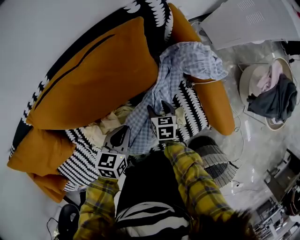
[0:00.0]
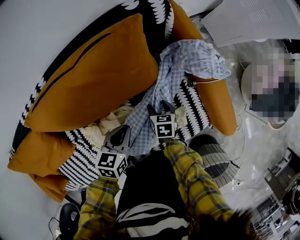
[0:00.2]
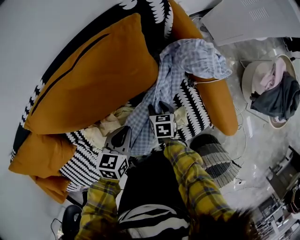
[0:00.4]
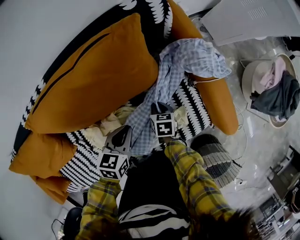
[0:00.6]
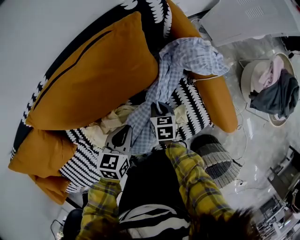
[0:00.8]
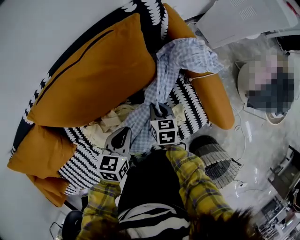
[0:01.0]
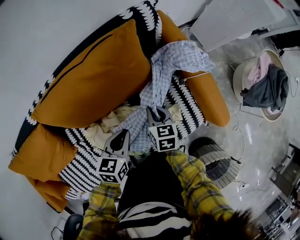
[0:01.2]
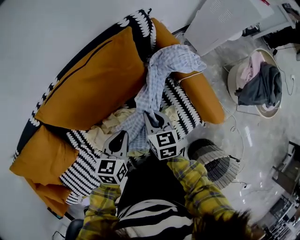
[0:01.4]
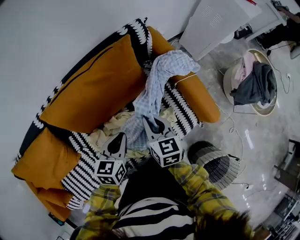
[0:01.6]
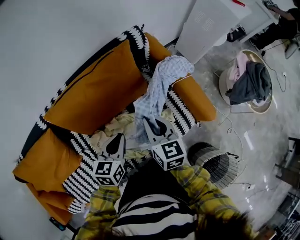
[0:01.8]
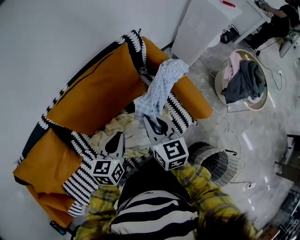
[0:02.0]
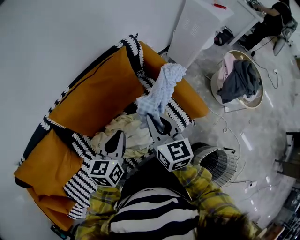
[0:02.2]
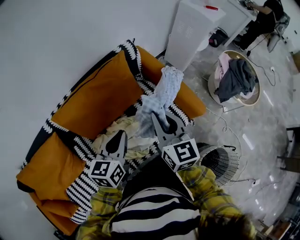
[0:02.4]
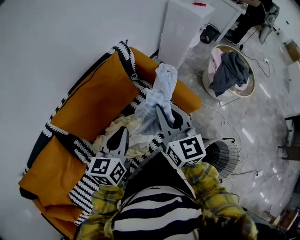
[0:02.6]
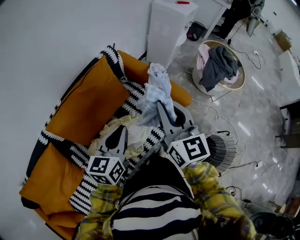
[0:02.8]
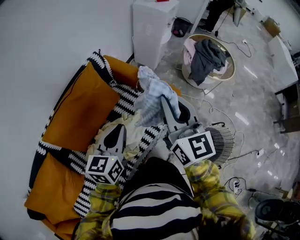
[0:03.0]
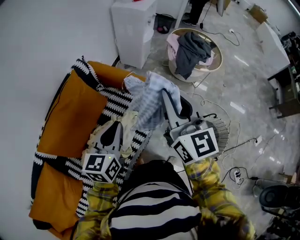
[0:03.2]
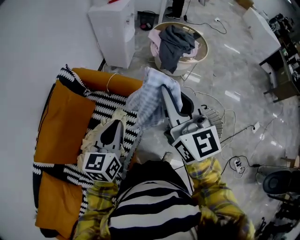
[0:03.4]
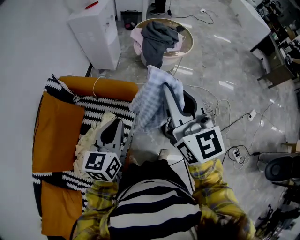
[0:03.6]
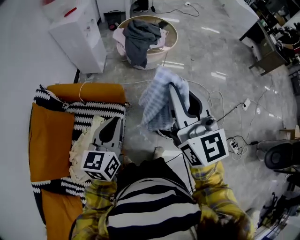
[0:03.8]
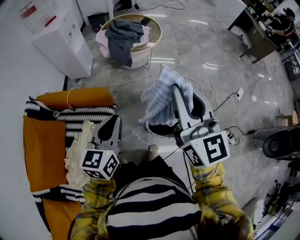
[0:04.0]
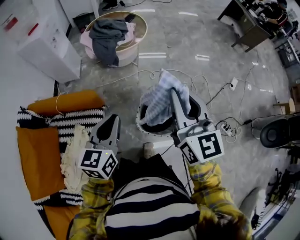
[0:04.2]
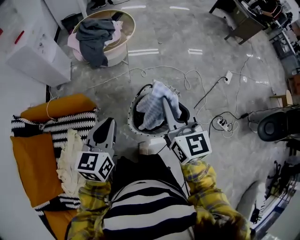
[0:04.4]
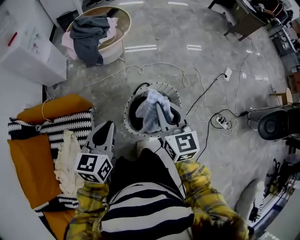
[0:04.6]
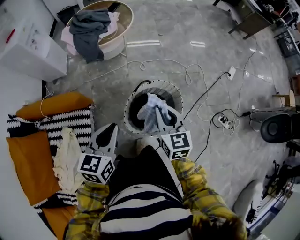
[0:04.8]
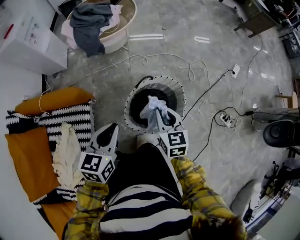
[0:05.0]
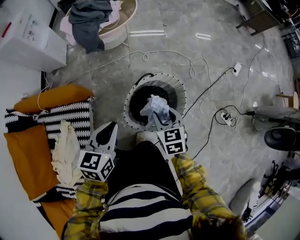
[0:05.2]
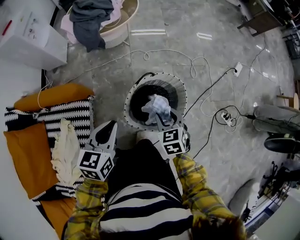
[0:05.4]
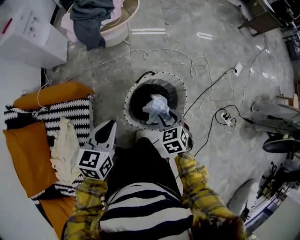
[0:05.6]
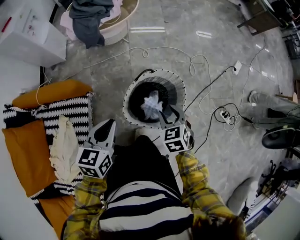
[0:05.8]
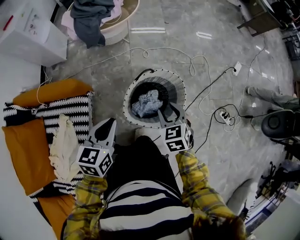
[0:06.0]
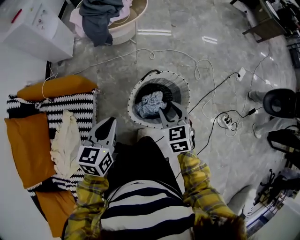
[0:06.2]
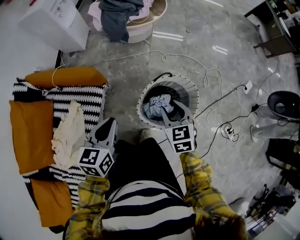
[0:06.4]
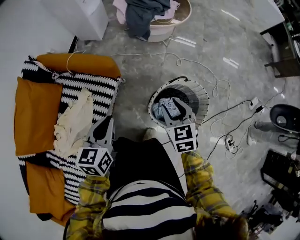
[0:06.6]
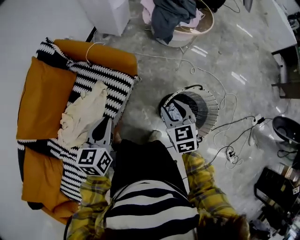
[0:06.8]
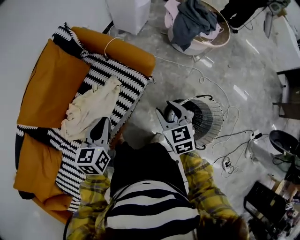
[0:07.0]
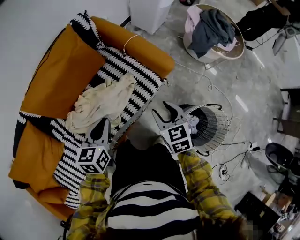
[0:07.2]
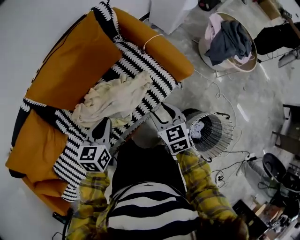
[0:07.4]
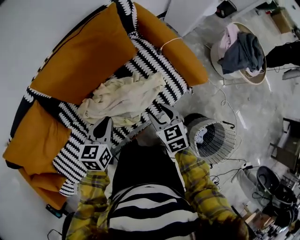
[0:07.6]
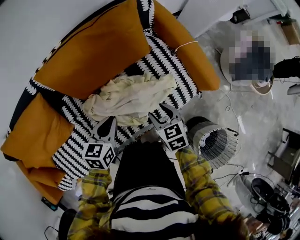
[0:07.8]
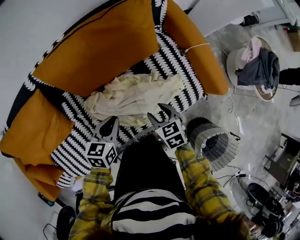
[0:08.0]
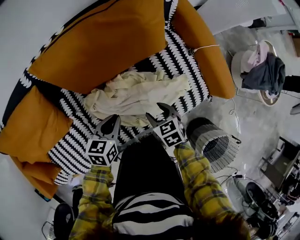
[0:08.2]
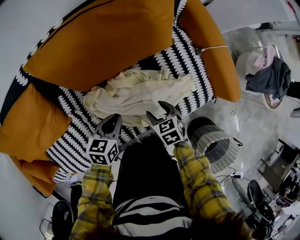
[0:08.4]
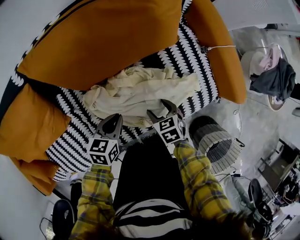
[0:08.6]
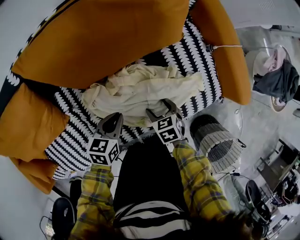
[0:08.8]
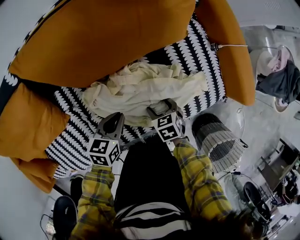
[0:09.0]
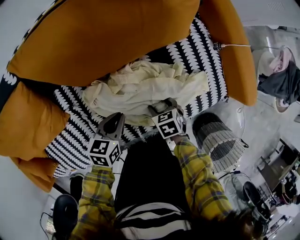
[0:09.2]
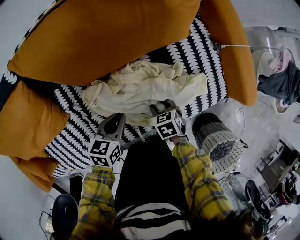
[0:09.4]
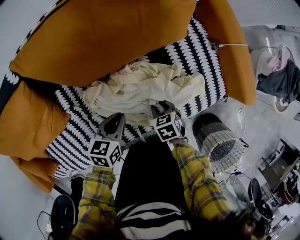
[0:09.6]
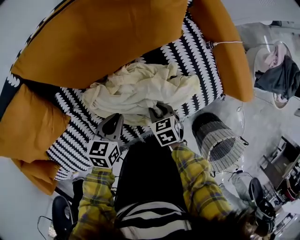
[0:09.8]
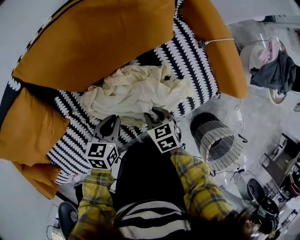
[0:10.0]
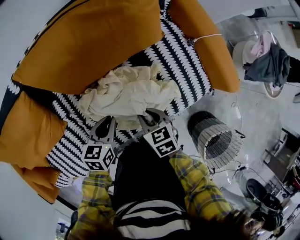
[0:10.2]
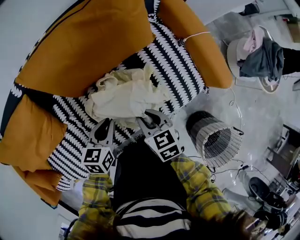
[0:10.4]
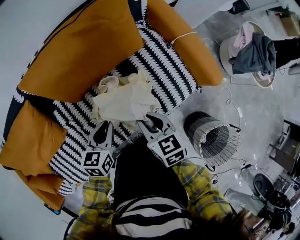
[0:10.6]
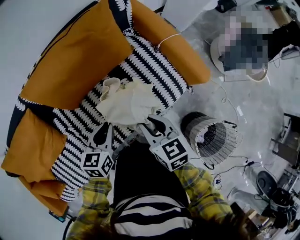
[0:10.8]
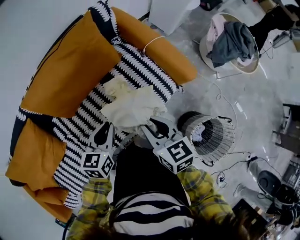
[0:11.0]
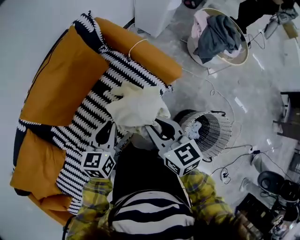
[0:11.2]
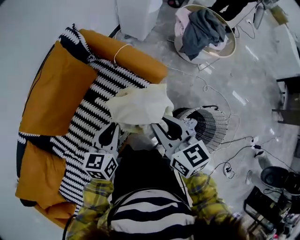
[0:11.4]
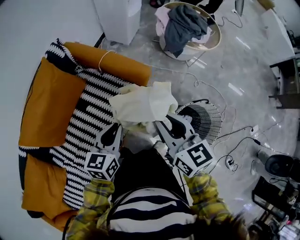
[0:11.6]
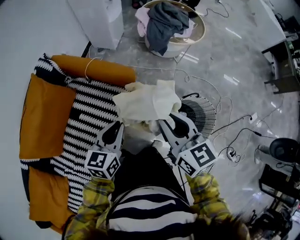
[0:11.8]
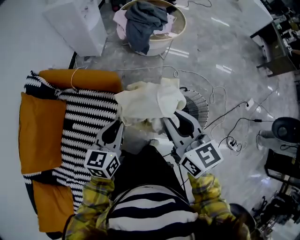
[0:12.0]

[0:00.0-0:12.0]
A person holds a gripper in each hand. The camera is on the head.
0:00.0 to 0:01.6: The left gripper travels upward by some 10 cm. The right gripper moves upward, about 25 cm, rotates some 30 degrees, and closes up.
0:01.6 to 0:03.0: The left gripper shifts about 20 cm upward, and turns by some 30 degrees; the right gripper travels upward by about 30 cm, and points its fingers about 30 degrees further upward.
0:03.0 to 0:04.4: Both grippers are carried about 50 cm. The left gripper swivels about 40 degrees. The right gripper changes its angle by roughly 40 degrees.
0:04.4 to 0:06.0: The right gripper shifts about 25 cm downward, tips its fingers downward by roughly 40 degrees, and opens its fingers. The left gripper moves downward, approximately 10 cm.
0:06.0 to 0:07.6: Both grippers are carried some 50 cm. The right gripper swivels approximately 60 degrees; the left gripper changes its angle by approximately 60 degrees.
0:07.6 to 0:09.0: Both grippers travel together downward and to the left, about 25 cm. The right gripper rotates some 30 degrees.
0:09.0 to 0:10.4: The left gripper shifts approximately 10 cm upward, while the right gripper heads upward, covering some 15 cm, turns by some 20 degrees, and closes up.
0:10.4 to 0:12.0: The pair of grippers is taken approximately 50 cm. The right gripper swivels roughly 60 degrees. Meanwhile the left gripper turns by roughly 50 degrees.

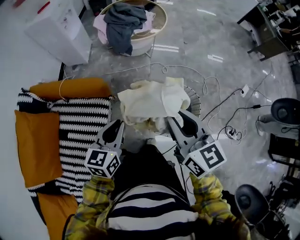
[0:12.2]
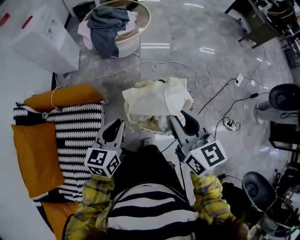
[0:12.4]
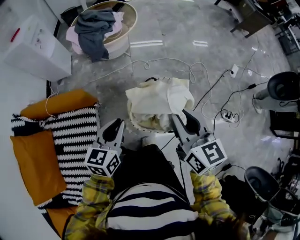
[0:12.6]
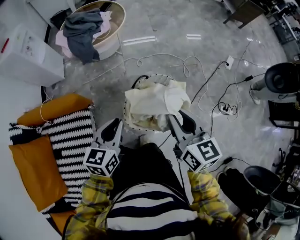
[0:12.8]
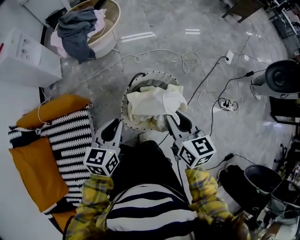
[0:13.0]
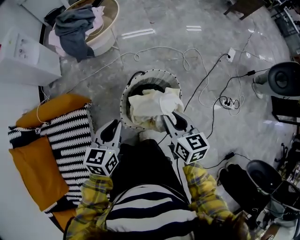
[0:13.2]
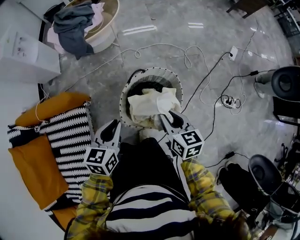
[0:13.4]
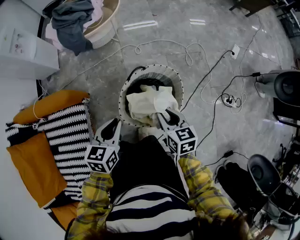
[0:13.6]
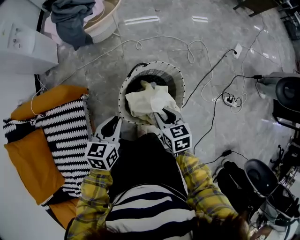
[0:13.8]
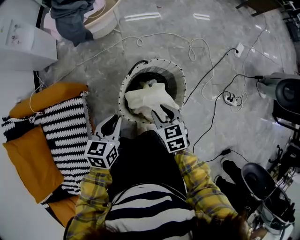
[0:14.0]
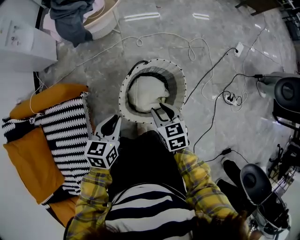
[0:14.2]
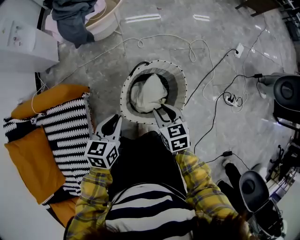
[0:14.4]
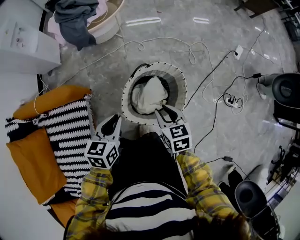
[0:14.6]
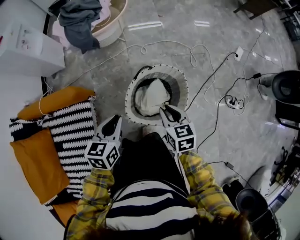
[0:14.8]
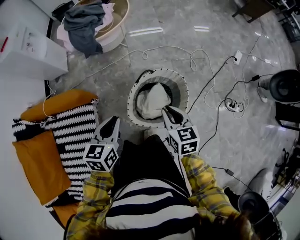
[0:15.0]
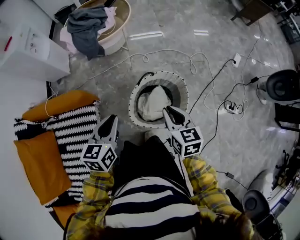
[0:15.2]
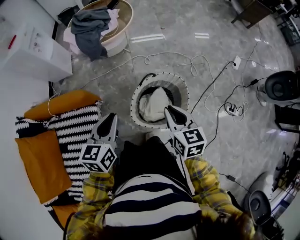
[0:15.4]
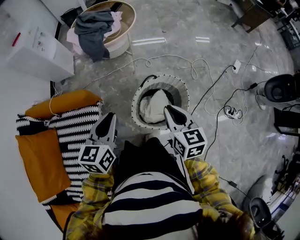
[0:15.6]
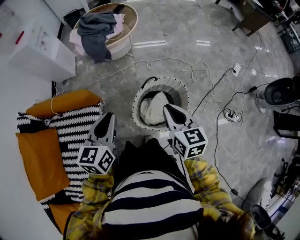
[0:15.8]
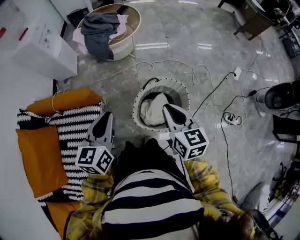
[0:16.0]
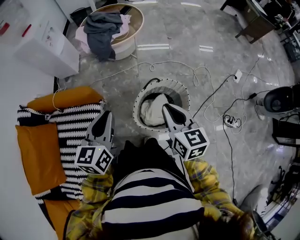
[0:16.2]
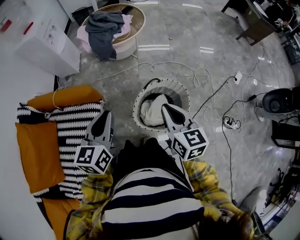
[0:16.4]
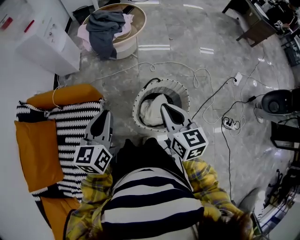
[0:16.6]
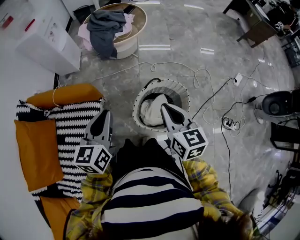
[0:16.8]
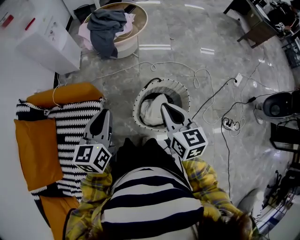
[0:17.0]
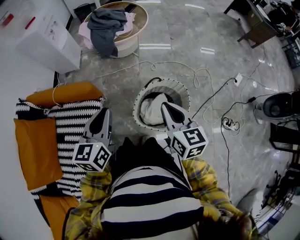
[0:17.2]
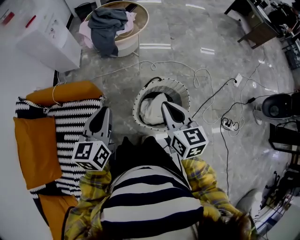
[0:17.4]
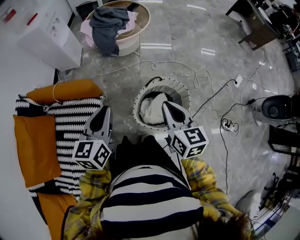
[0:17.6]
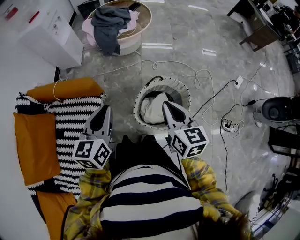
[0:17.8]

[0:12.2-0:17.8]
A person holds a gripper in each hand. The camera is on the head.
0:12.2 to 0:13.6: The right gripper heads downward and to the right, covering approximately 30 cm, and rotates about 30 degrees; the left gripper goes roughly 15 cm to the right and downward.
0:13.6 to 0:15.0: The right gripper shifts by some 5 cm. The left gripper ends up about 5 cm from where it was.
0:15.0 to 0:16.4: The right gripper is displaced upward by some 15 cm; the left gripper goes about 15 cm upward and to the left, and changes its angle by approximately 20 degrees.
0:16.4 to 0:17.8: The grippers stay close to where they were, moving slightly.

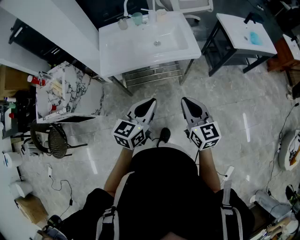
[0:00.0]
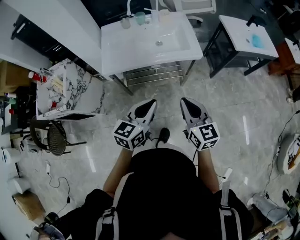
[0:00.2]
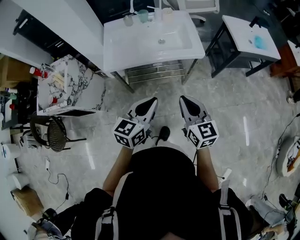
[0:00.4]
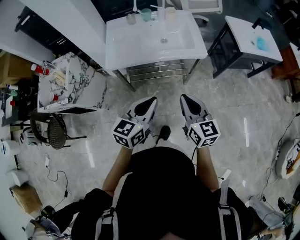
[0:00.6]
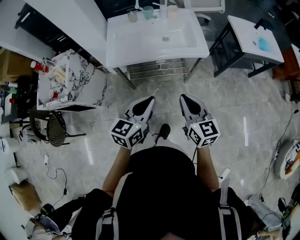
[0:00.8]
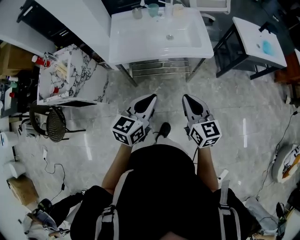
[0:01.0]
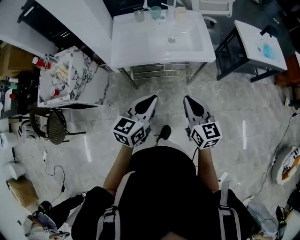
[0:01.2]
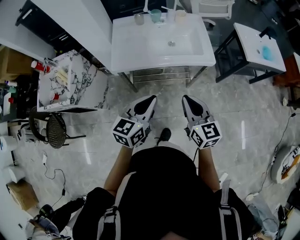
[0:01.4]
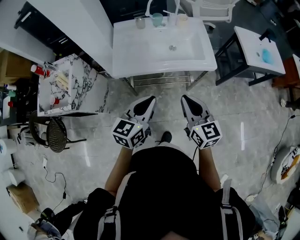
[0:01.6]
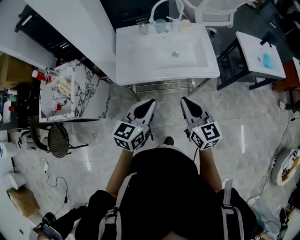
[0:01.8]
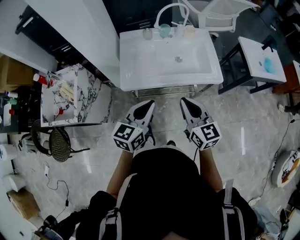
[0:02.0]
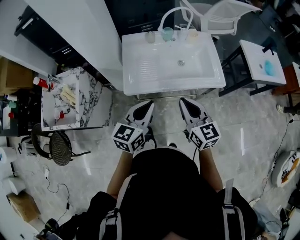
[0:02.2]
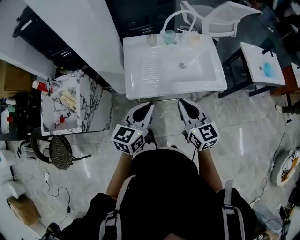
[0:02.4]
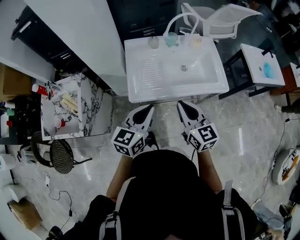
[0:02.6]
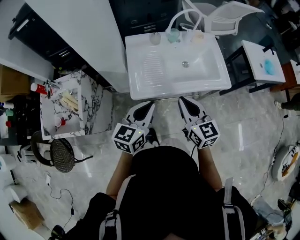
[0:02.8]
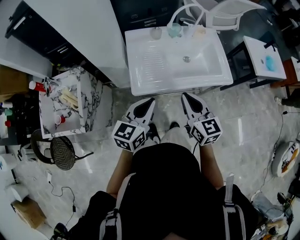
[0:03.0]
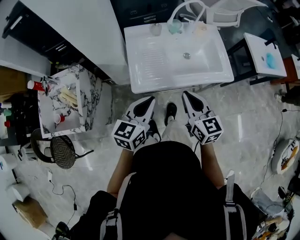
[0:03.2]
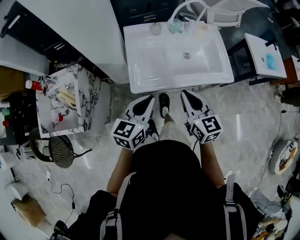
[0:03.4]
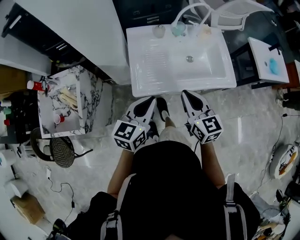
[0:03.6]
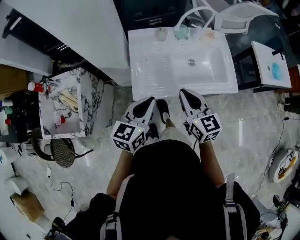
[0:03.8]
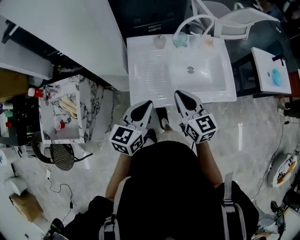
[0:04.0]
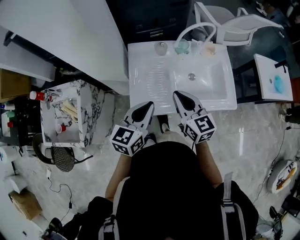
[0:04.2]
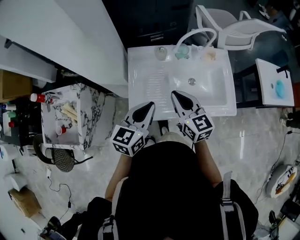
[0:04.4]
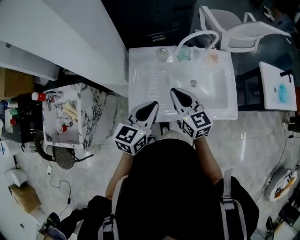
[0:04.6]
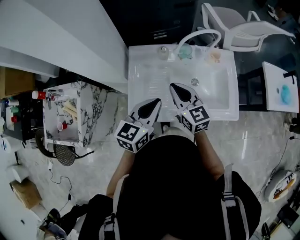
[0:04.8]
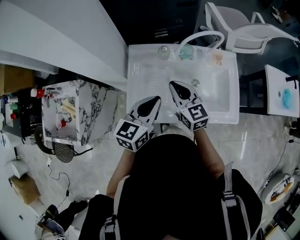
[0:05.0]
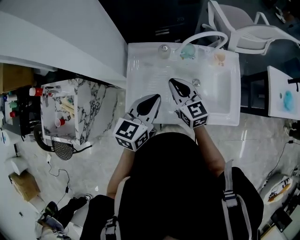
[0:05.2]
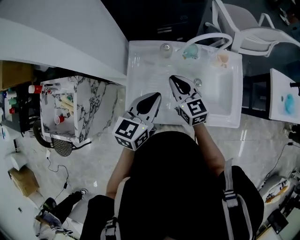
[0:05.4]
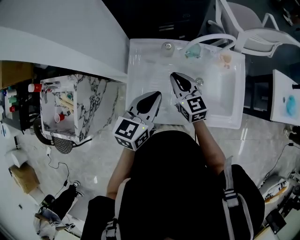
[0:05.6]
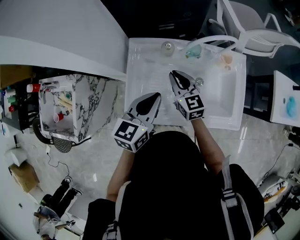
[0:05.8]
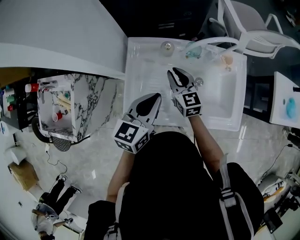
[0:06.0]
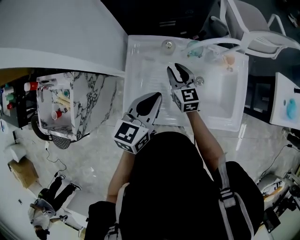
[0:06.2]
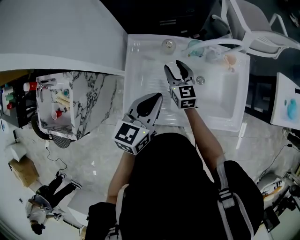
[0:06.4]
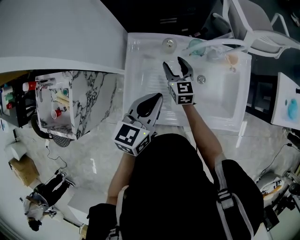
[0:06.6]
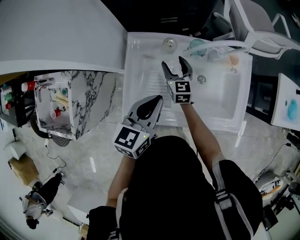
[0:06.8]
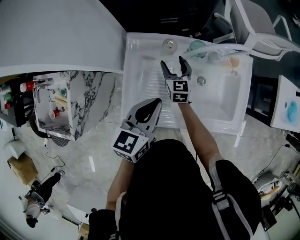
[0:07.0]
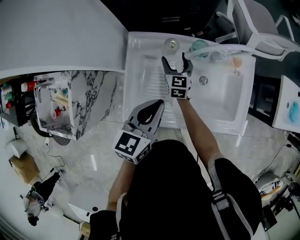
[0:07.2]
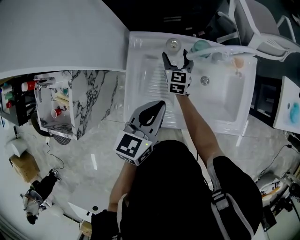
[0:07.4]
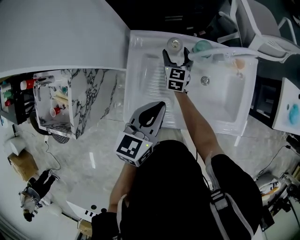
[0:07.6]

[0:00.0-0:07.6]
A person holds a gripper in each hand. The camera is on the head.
0:00.0 to 0:01.6: Both grippers travel together to the left and forward, about 10 cm.
0:01.6 to 0:03.0: The grippers both shift to the left and forward by approximately 20 cm.
0:03.0 to 0:04.6: The grippers both shift forward by approximately 20 cm.
0:04.6 to 0:06.0: The right gripper shifts some 20 cm forward and downward. The left gripper goes some 10 cm forward.
0:06.0 to 0:07.6: The right gripper is displaced forward and downward by approximately 15 cm, rotates approximately 20 degrees, and opens.
